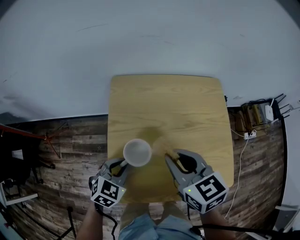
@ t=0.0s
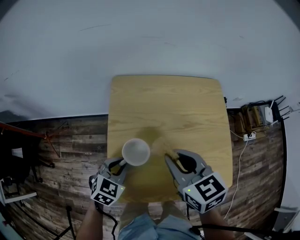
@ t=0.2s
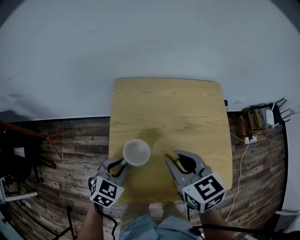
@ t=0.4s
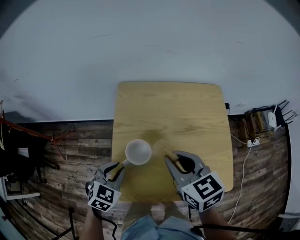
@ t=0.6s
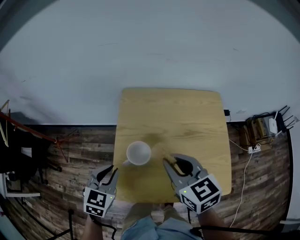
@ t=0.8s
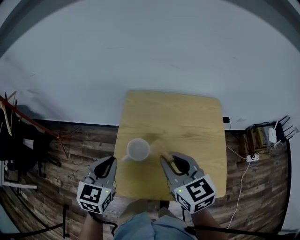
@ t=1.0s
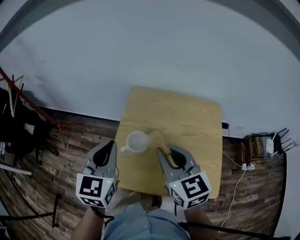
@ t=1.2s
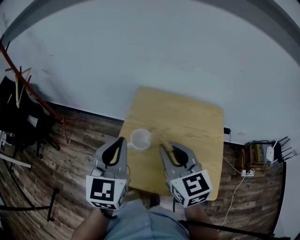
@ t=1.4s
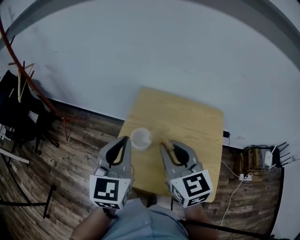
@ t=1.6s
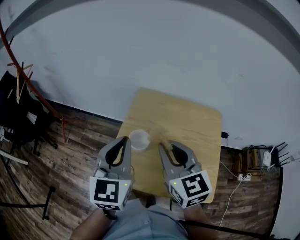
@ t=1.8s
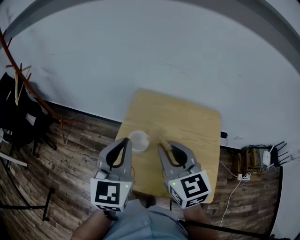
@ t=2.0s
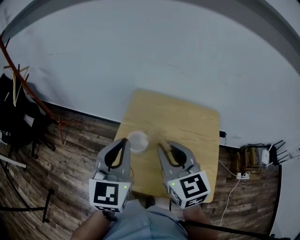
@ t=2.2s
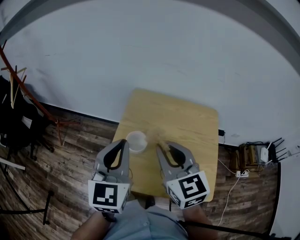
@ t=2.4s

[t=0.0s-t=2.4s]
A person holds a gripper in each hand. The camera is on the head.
t=0.0s to t=1.2s: The right gripper travels upward by roughly 10 cm, while the left gripper shifts about 25 cm upward, and swivels about 50 degrees.
t=1.2s to t=2.4s: The left gripper moves approximately 5 cm.

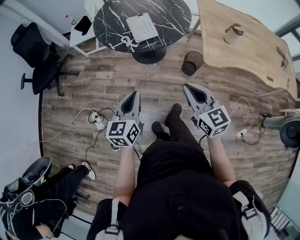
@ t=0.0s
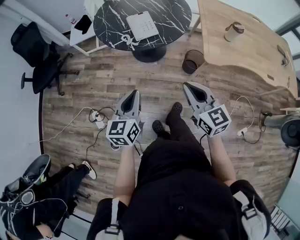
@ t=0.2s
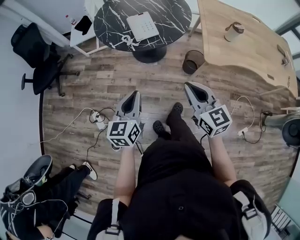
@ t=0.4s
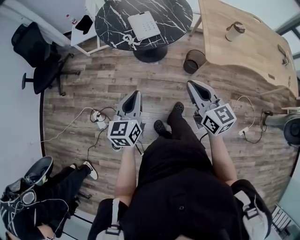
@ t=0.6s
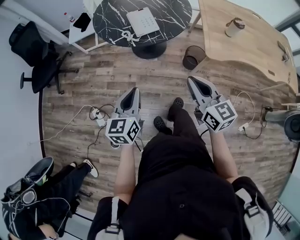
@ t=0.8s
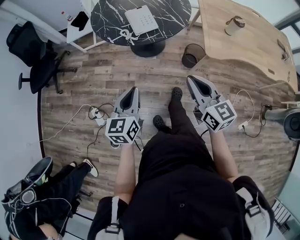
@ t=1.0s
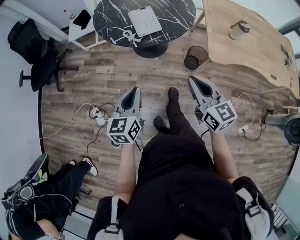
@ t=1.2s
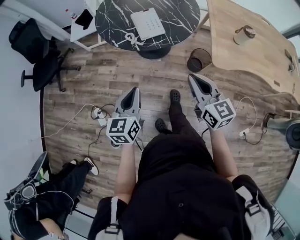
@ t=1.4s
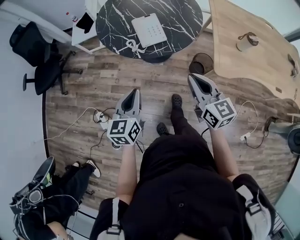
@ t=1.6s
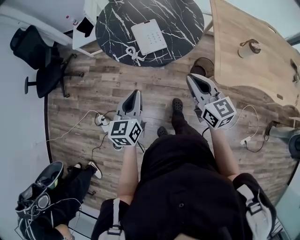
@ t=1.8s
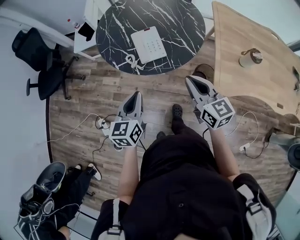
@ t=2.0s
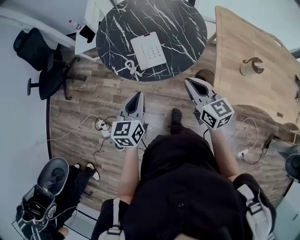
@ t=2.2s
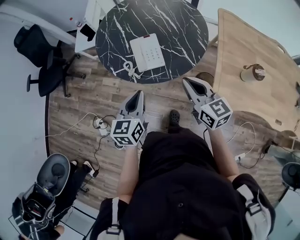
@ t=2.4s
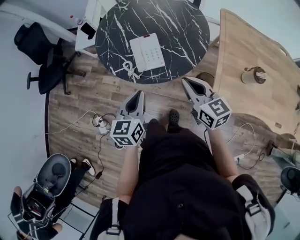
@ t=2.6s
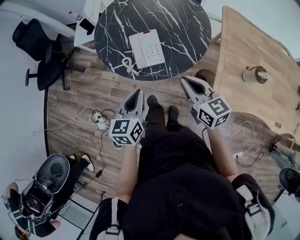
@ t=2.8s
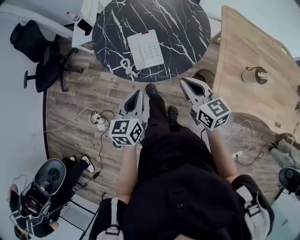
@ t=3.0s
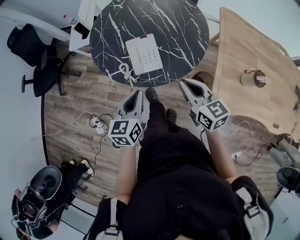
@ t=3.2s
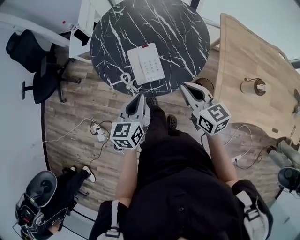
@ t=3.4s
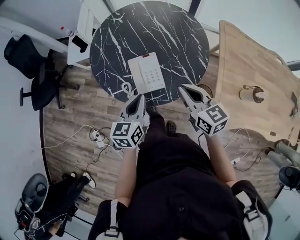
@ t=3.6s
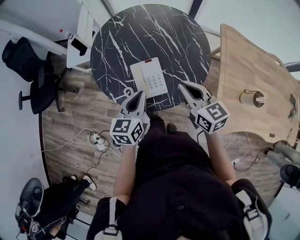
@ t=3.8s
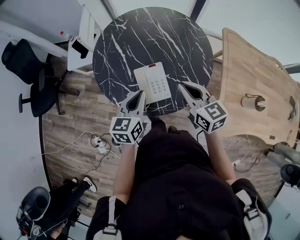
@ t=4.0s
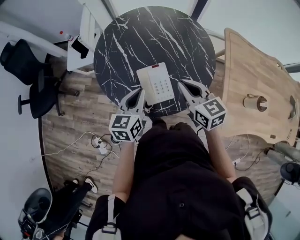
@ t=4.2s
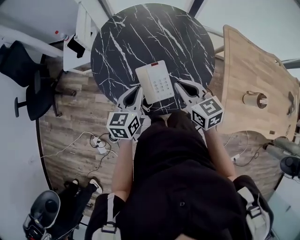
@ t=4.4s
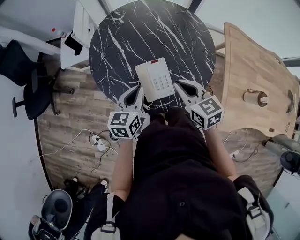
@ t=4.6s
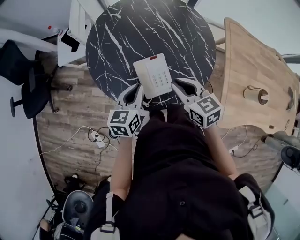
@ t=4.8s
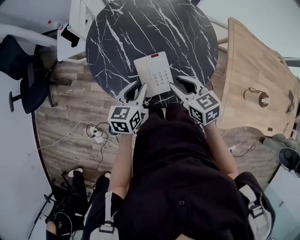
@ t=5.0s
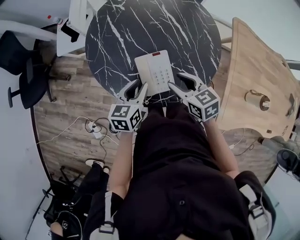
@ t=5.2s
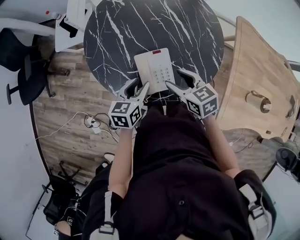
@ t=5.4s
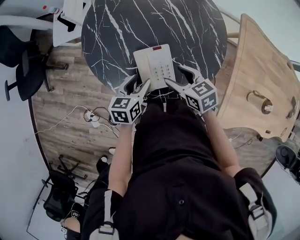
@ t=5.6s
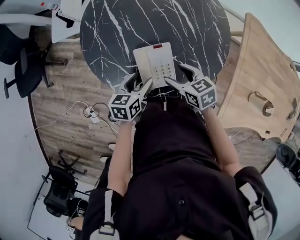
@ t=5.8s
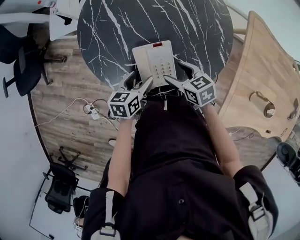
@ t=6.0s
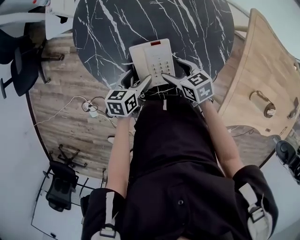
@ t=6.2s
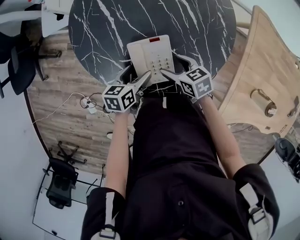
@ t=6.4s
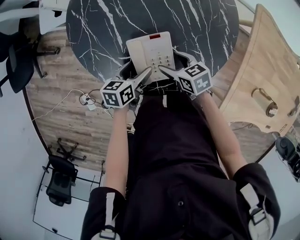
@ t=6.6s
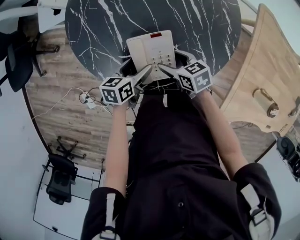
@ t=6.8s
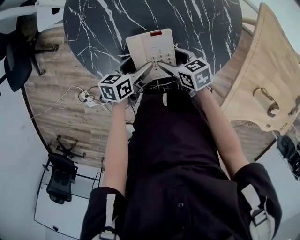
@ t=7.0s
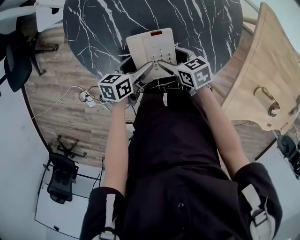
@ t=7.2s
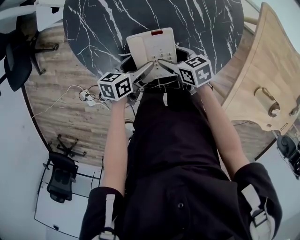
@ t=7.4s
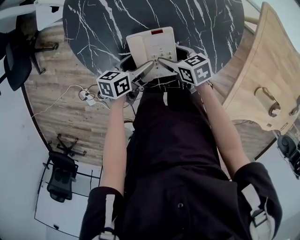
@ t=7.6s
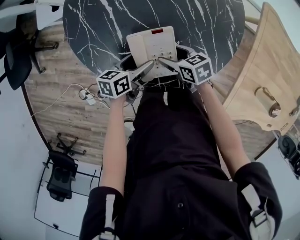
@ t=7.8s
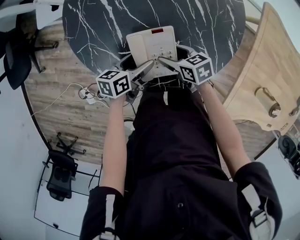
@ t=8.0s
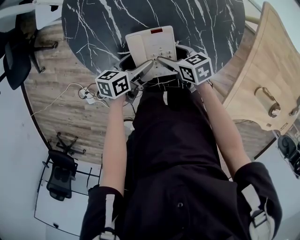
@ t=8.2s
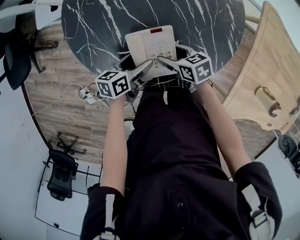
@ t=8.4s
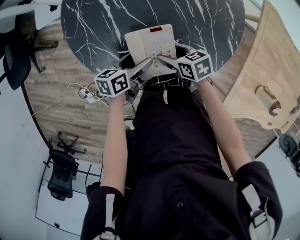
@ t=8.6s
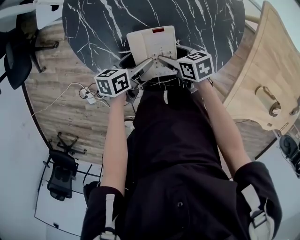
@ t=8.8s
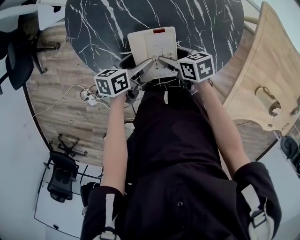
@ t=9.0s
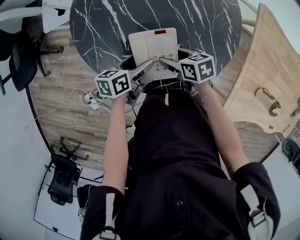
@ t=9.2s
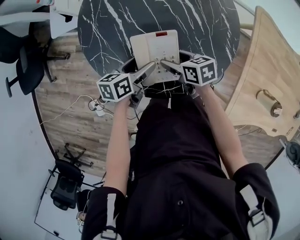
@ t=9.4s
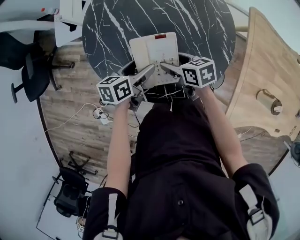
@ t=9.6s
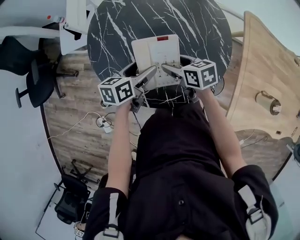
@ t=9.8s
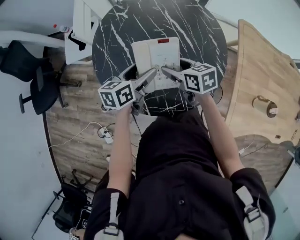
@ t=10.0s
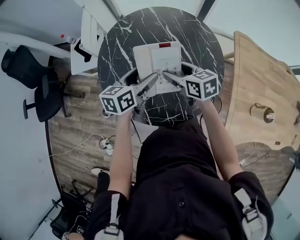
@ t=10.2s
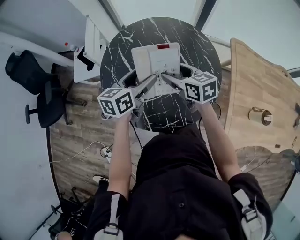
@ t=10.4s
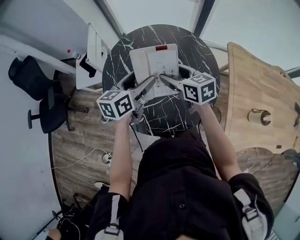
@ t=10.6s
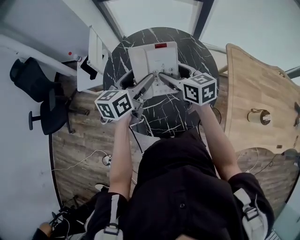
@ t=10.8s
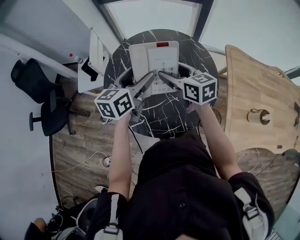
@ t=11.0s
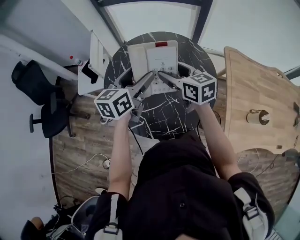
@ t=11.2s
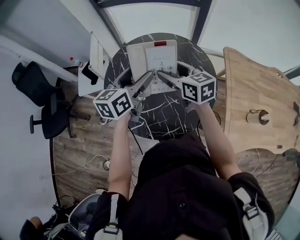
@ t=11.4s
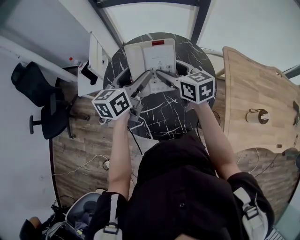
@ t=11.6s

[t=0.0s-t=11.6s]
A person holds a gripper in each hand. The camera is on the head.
t=0.0s to t=1.4s: The grippers both shift forward by about 5 cm.
t=1.4s to t=2.8s: The right gripper shifts some 20 cm forward. The left gripper goes some 20 cm forward and to the right.
t=2.8s to t=4.4s: Both grippers travel together forward, some 20 cm.
t=4.4s to t=5.8s: The grippers both shift downward by roughly 15 cm. The left gripper swivels approximately 20 degrees, and opens, while the right gripper turns by about 30 degrees, and opens.
t=5.8s to t=7.2s: Both grippers travel together downward, approximately 10 cm.
t=7.2s to t=8.8s: The grippers make only small movements.
t=8.8s to t=10.2s: The grippers both shift upward by some 20 cm. The right gripper changes its angle by about 30 degrees; the left gripper swivels approximately 30 degrees.
t=10.2s to t=11.6s: The two grippers go about 15 cm upward.

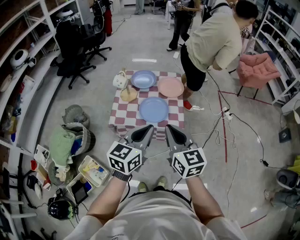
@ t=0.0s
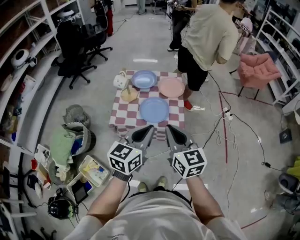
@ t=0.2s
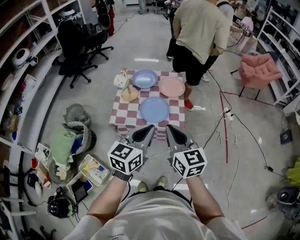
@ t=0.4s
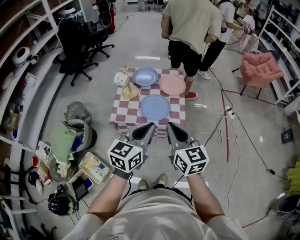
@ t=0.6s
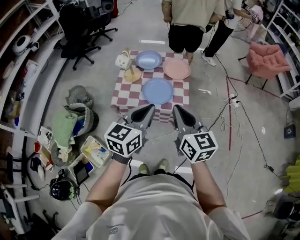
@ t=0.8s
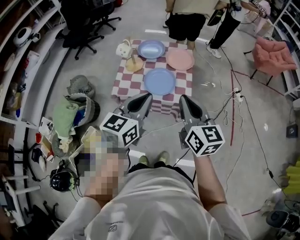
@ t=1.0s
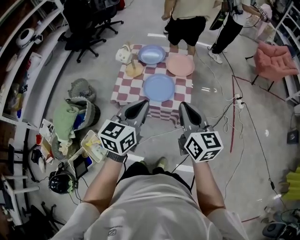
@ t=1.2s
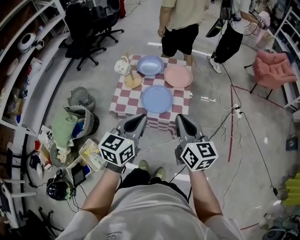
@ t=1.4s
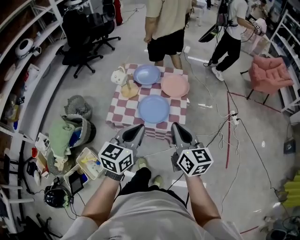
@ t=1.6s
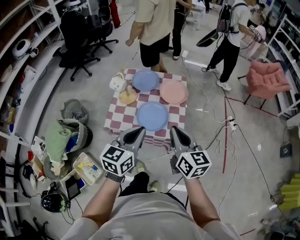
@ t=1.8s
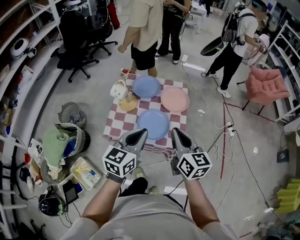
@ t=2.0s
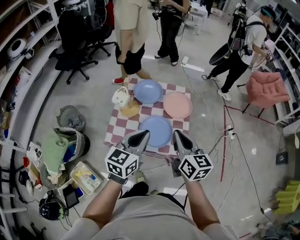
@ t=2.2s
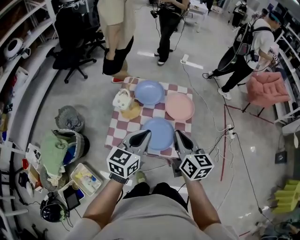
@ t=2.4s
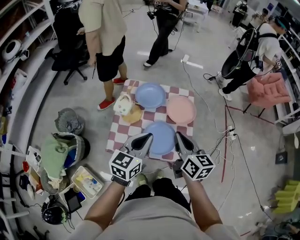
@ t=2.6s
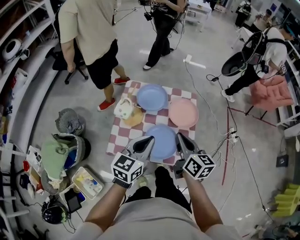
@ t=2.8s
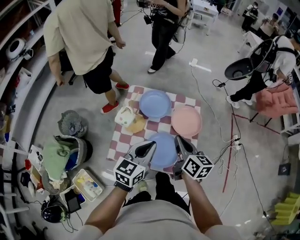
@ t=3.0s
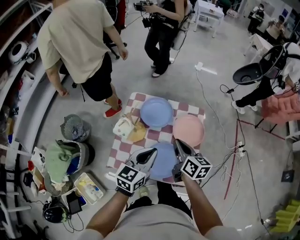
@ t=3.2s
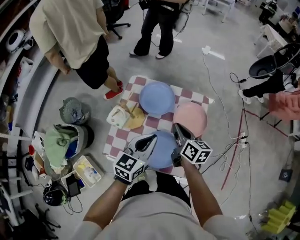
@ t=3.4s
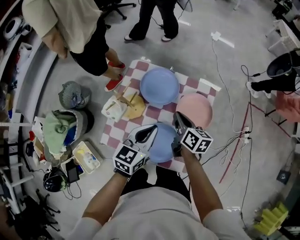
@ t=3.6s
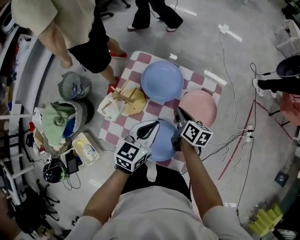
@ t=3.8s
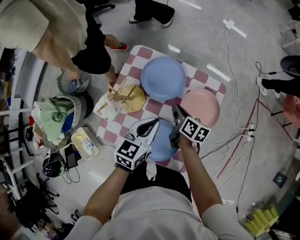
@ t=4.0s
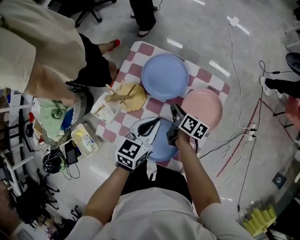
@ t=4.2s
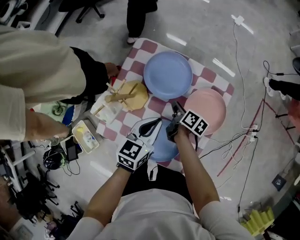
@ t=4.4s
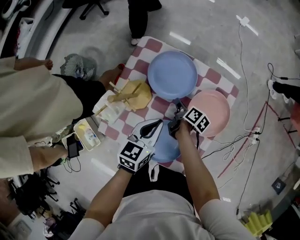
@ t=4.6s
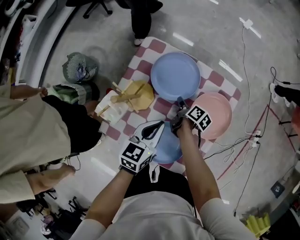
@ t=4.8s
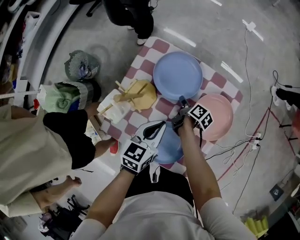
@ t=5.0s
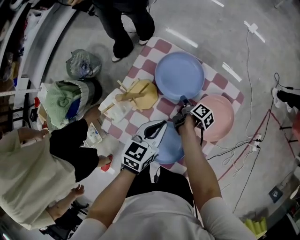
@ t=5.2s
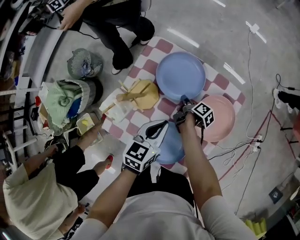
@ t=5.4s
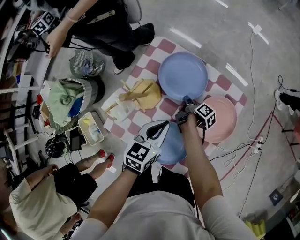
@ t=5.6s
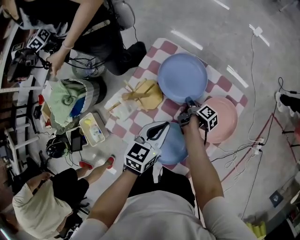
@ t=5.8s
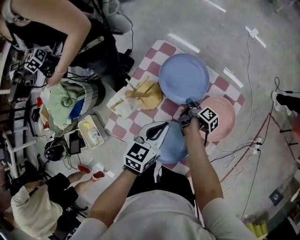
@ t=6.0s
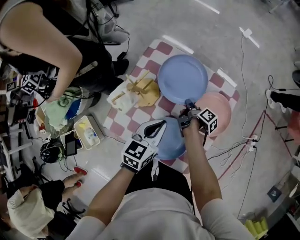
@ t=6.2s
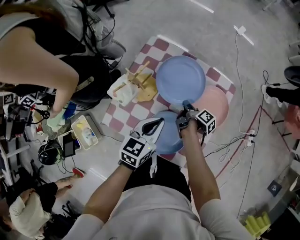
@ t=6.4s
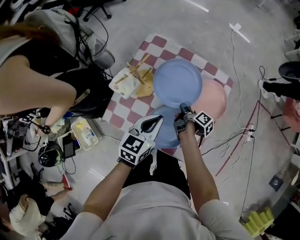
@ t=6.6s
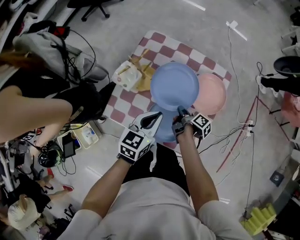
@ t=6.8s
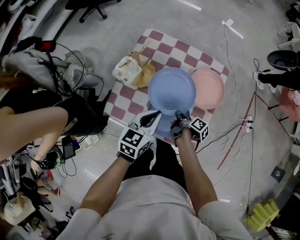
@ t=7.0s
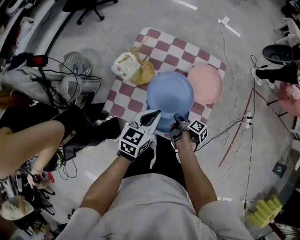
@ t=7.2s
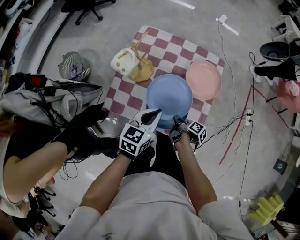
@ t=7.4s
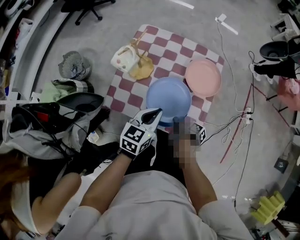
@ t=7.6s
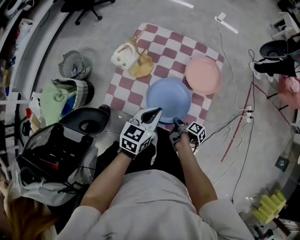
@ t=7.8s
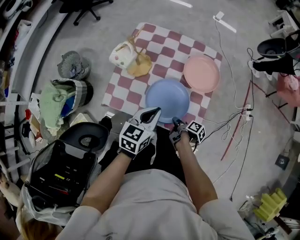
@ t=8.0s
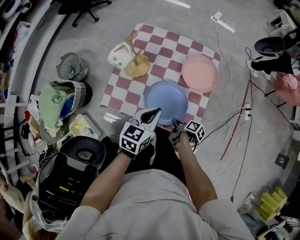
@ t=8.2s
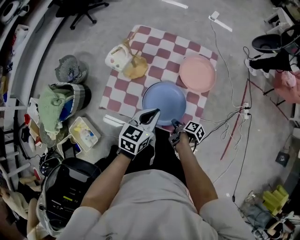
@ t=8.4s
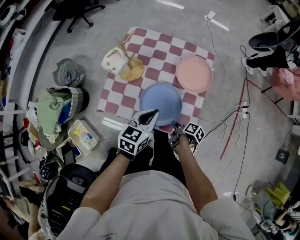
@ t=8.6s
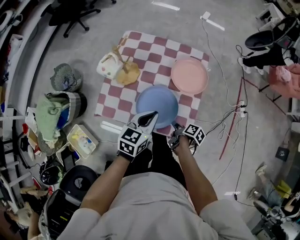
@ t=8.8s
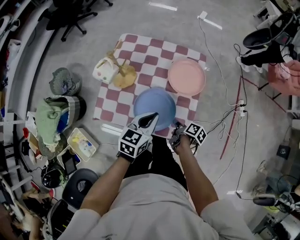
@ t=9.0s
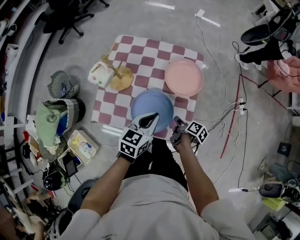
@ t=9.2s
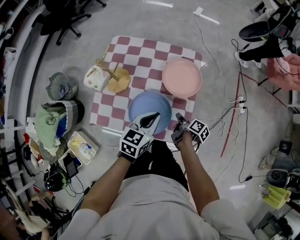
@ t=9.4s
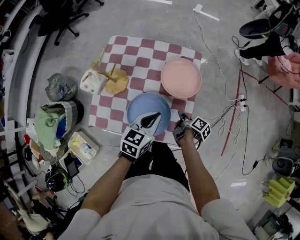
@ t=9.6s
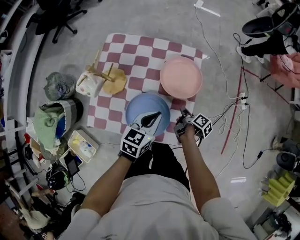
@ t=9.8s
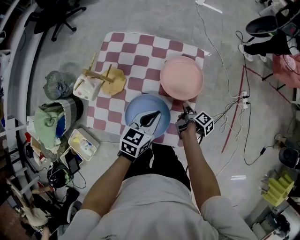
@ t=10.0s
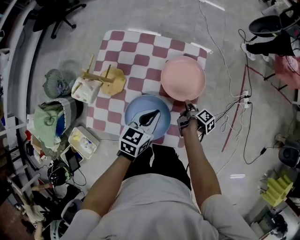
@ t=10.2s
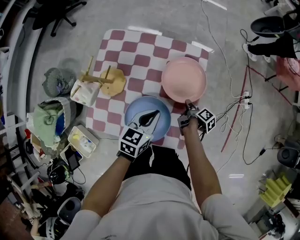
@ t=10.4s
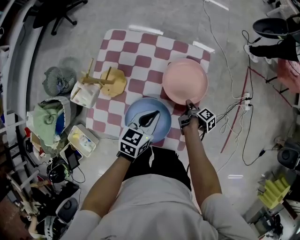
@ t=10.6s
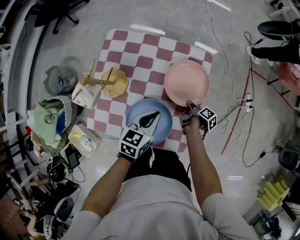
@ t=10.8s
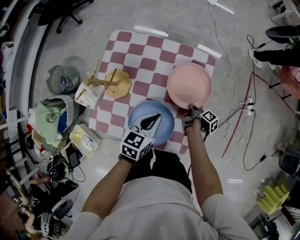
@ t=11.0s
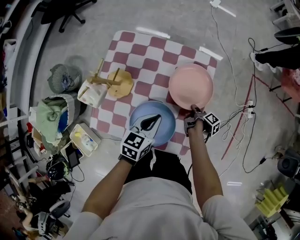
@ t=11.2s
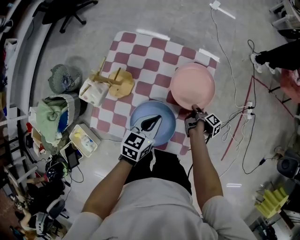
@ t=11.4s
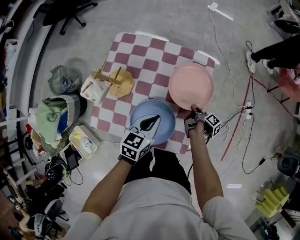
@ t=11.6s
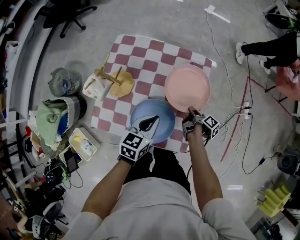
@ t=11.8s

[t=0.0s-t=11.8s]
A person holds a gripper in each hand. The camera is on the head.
t=1.4s to t=3.0s: The left gripper moves some 30 cm.
t=3.0s to t=4.4s: The left gripper heads downward, covering about 20 cm, and swivels some 20 degrees.
t=6.0s to t=7.4s: The left gripper ends up about 15 cm from where it was.
t=8.8s to t=10.4s: The left gripper ends up about 15 cm from where it was.
